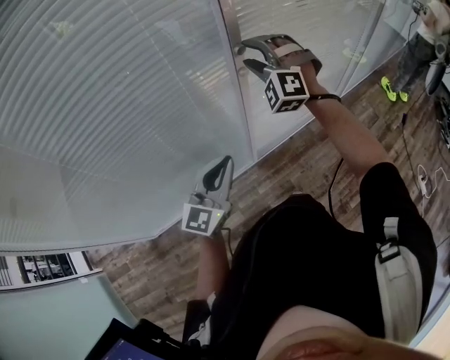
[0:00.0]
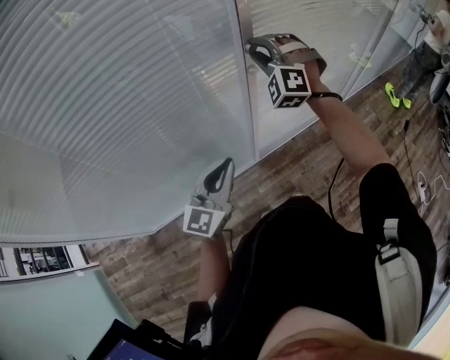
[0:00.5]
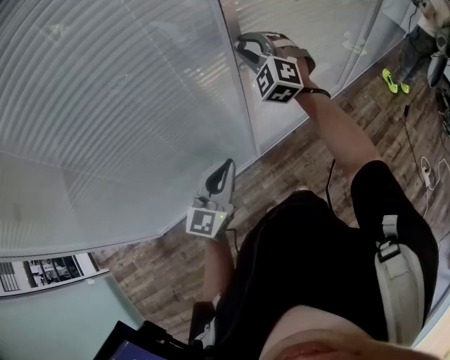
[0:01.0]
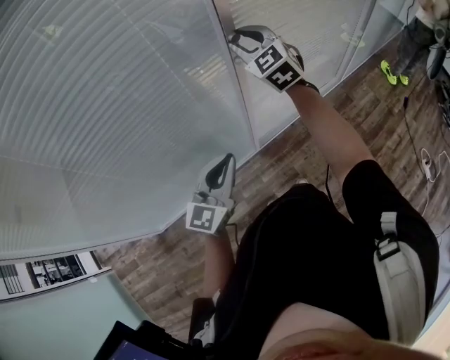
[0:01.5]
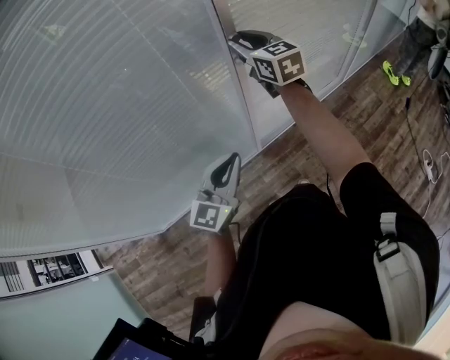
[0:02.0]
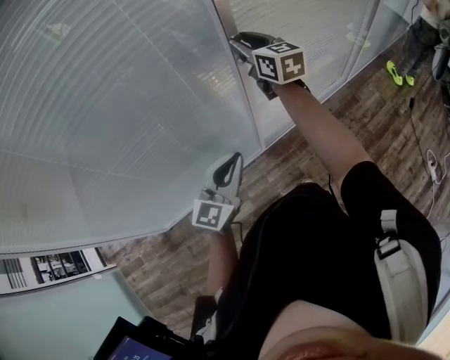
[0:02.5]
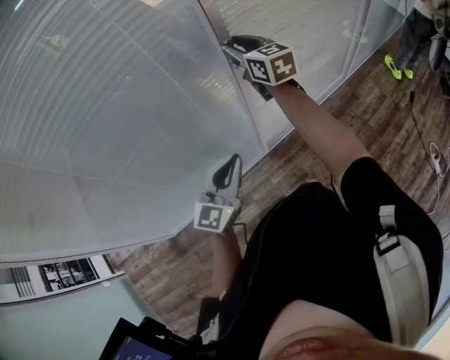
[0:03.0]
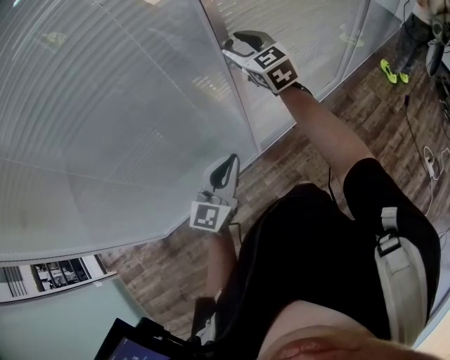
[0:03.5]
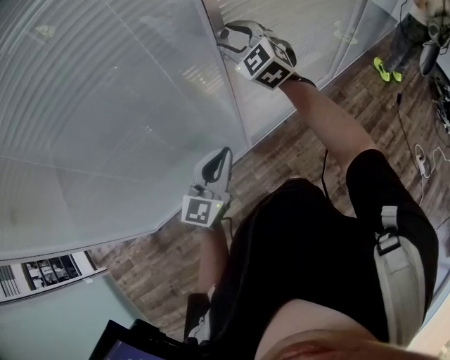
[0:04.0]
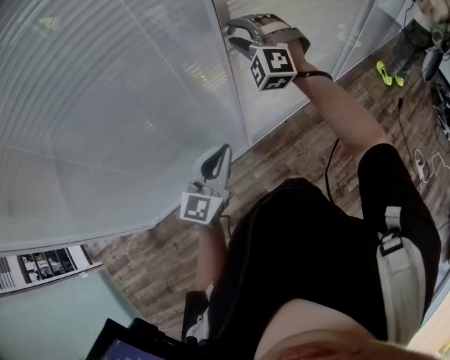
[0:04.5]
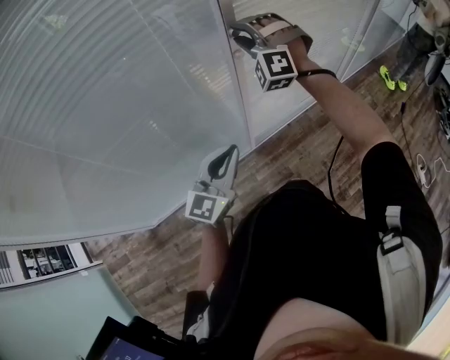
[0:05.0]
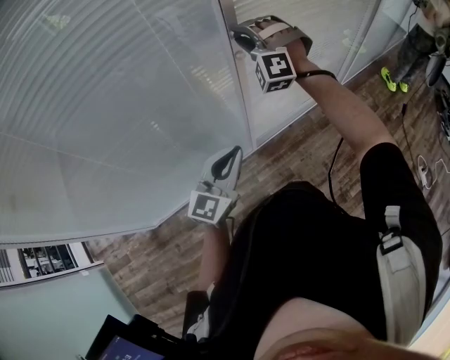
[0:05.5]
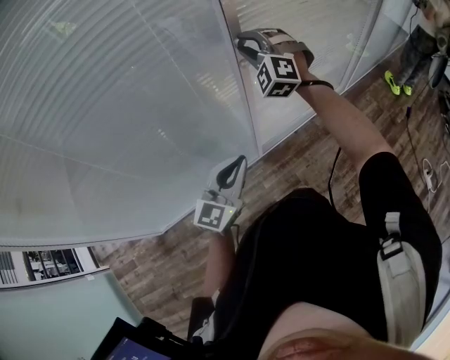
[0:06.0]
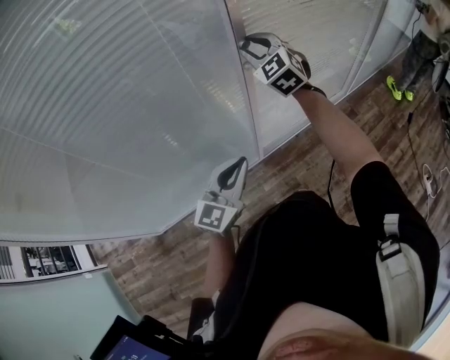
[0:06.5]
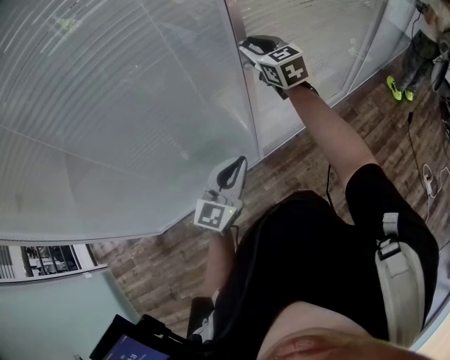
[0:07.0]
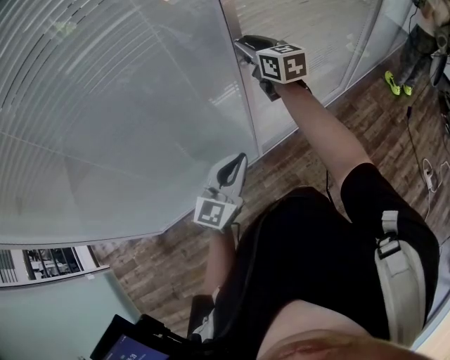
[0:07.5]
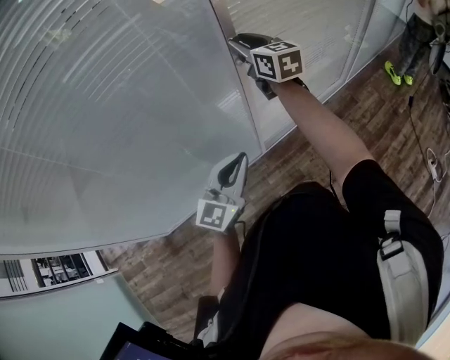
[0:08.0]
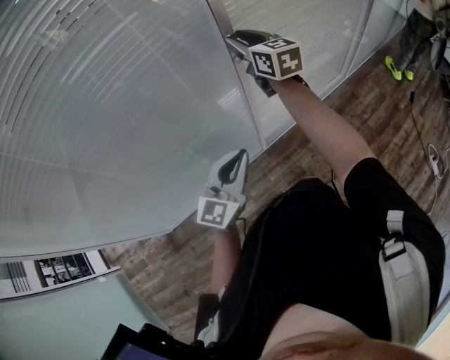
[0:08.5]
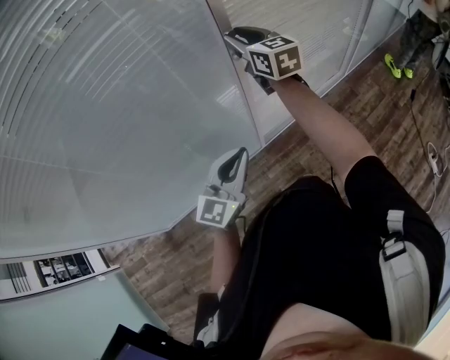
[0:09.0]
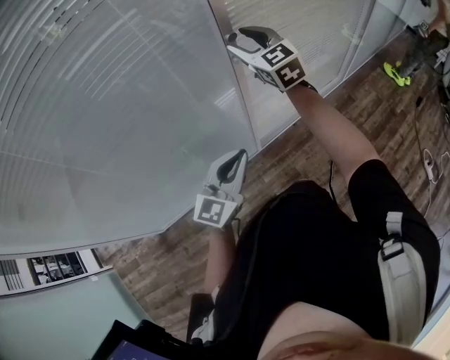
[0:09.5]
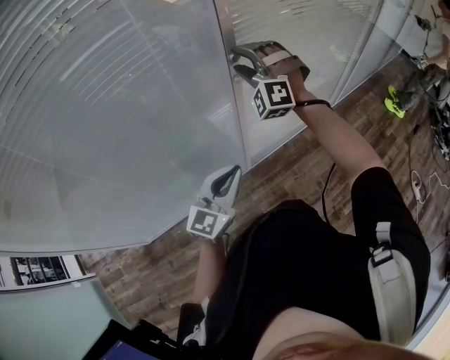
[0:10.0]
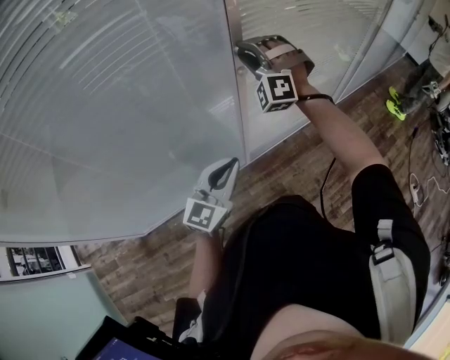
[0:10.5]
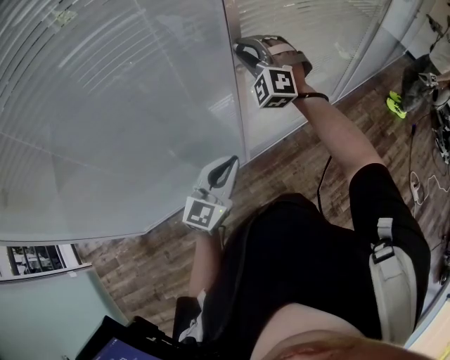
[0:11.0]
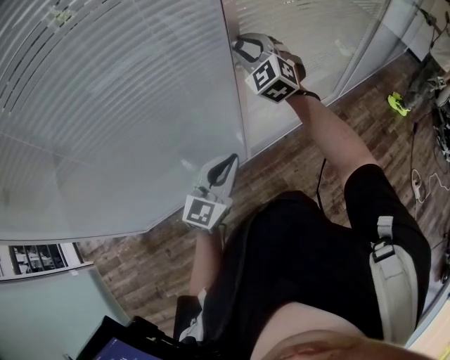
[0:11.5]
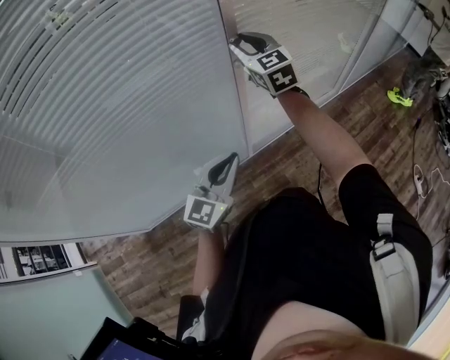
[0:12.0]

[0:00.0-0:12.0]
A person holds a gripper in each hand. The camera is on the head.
0:00.0 to 0:02.0: The right gripper rolls clockwise, seen from behind, by roughly 80 degrees, and closes up.
0:02.0 to 0:04.0: The right gripper rotates around the line of its fingers by about 40 degrees, counterclockwise from behind.
0:04.0 to 0:06.0: The right gripper turns by about 30 degrees.
0:06.0 to 0:08.0: The right gripper rolls clockwise, seen from behind, by approximately 80 degrees.
0:08.0 to 0:10.0: The right gripper twists roughly 90 degrees counterclockwise, seen from behind, and opens.
0:10.0 to 0:12.0: The right gripper rolls clockwise, seen from behind, by approximately 70 degrees, and closes its fingers.

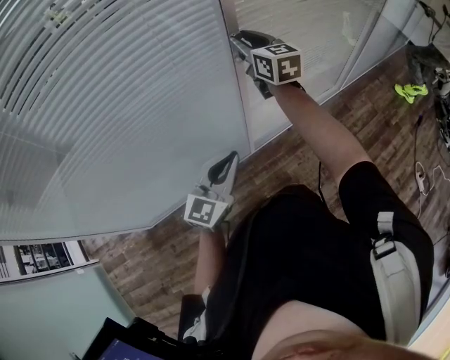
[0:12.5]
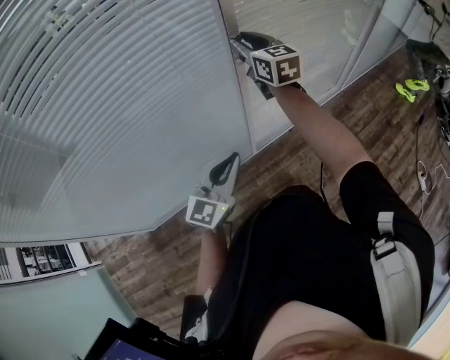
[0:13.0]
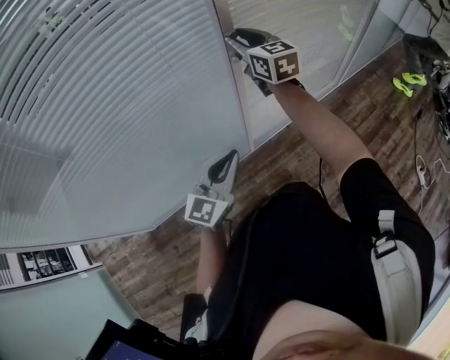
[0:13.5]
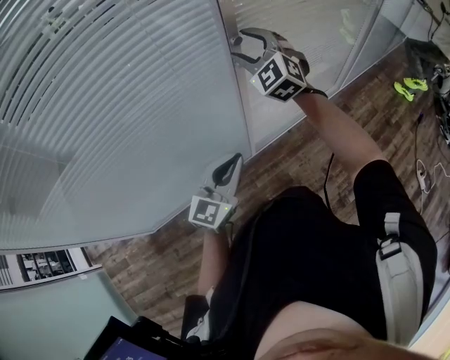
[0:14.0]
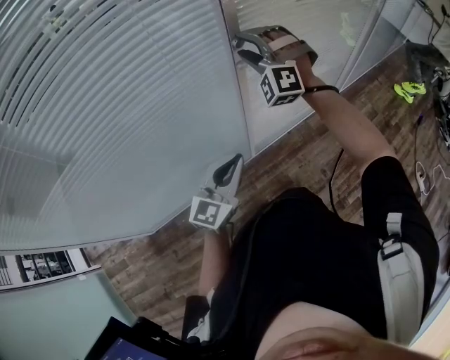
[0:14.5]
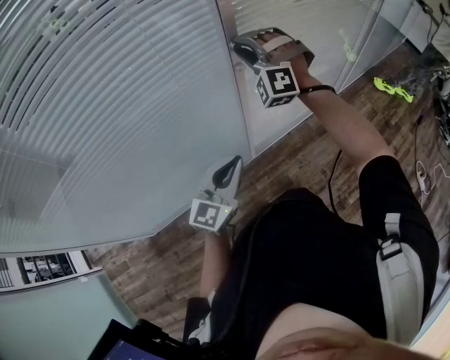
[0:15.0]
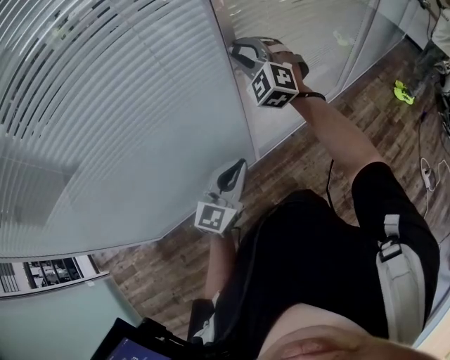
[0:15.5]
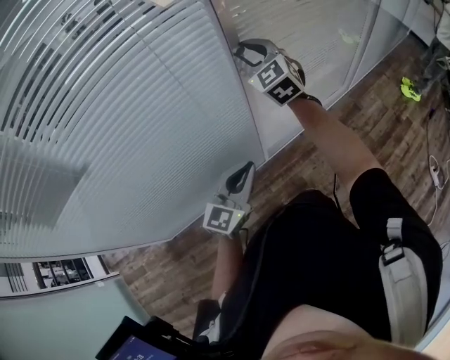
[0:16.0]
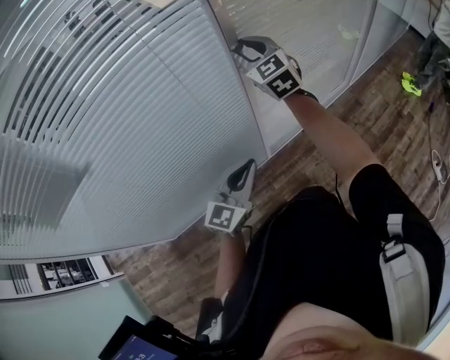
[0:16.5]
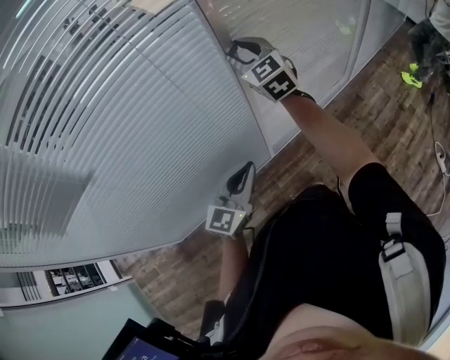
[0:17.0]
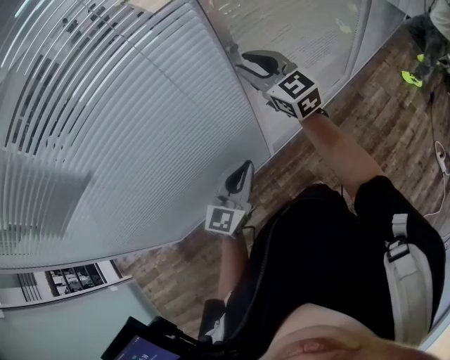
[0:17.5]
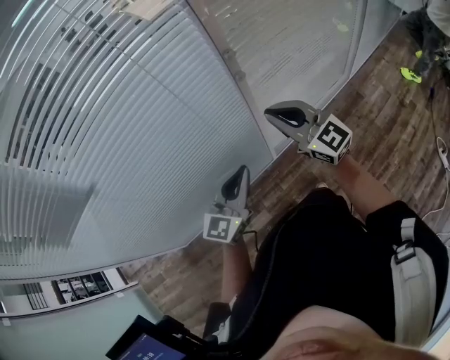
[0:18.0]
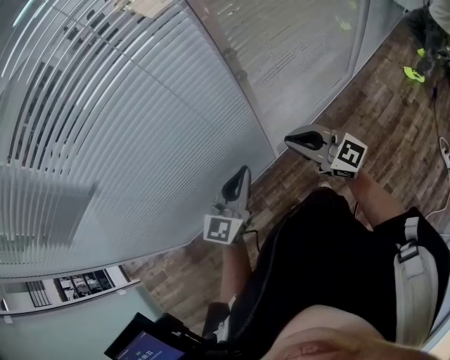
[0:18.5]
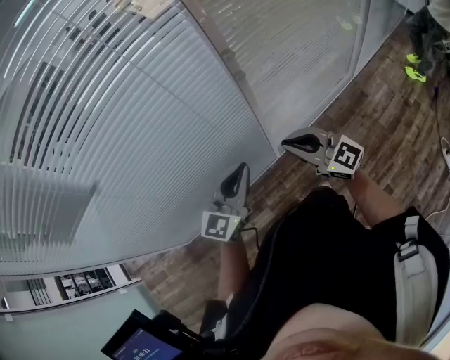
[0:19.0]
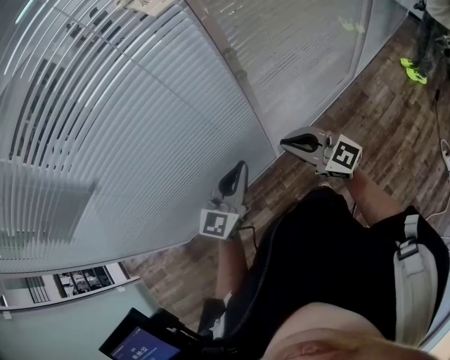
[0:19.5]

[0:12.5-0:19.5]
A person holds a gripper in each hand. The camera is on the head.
0:12.5 to 0:14.5: The right gripper rolls counterclockwise, seen from behind, by about 90 degrees, and opens up.
0:14.5 to 0:16.0: The right gripper rolls clockwise, seen from behind, by some 50 degrees, and closes its fingers.
0:16.0 to 0:17.5: The right gripper shifts roughly 5 cm backward, and changes its angle by about 20 degrees.
0:17.5 to 0:19.5: The right gripper travels backward and downward by roughly 20 cm, turns by approximately 30 degrees, and closes up.

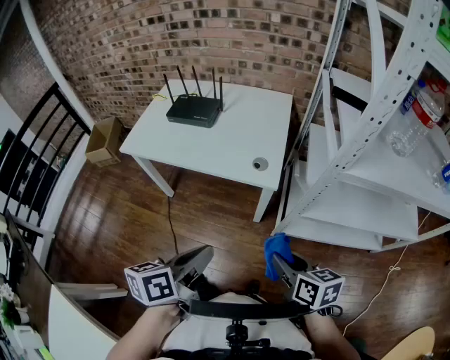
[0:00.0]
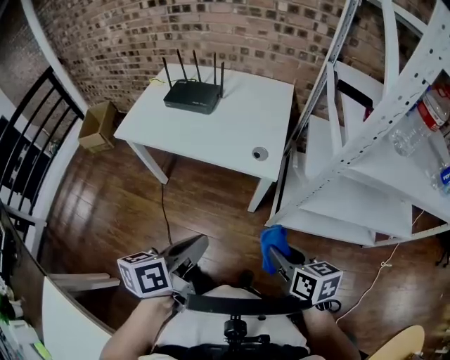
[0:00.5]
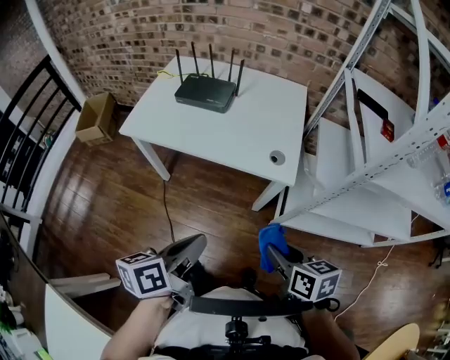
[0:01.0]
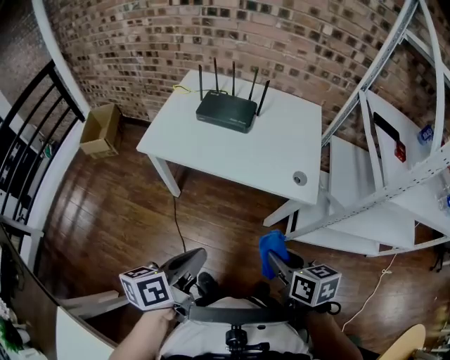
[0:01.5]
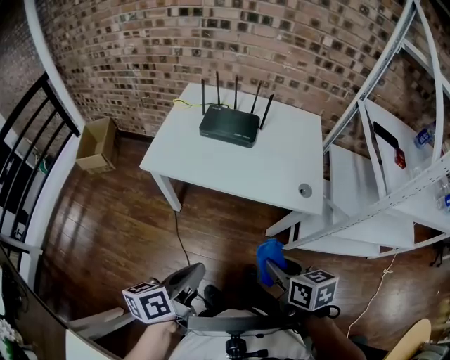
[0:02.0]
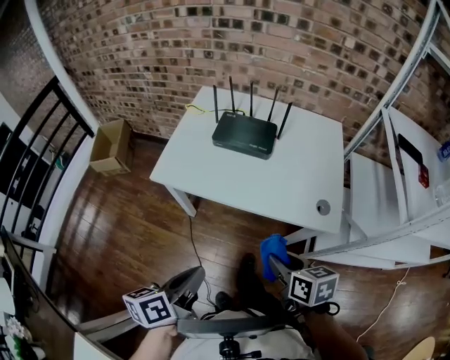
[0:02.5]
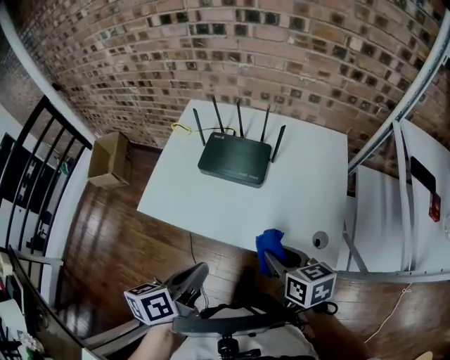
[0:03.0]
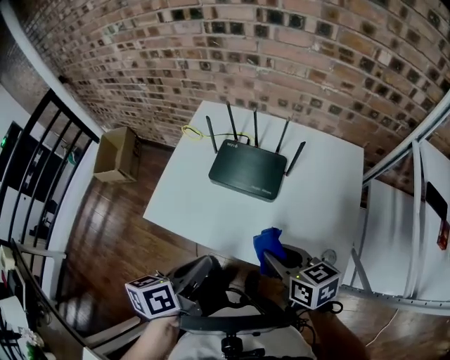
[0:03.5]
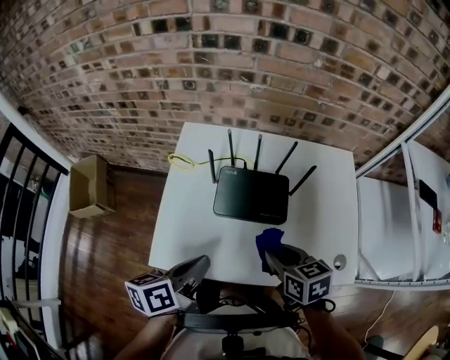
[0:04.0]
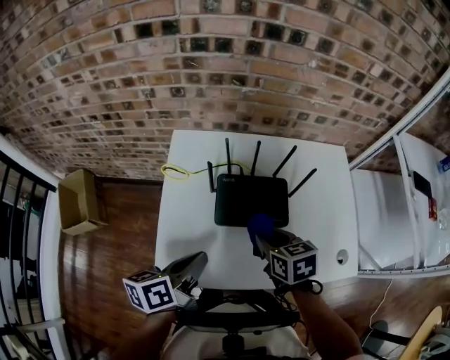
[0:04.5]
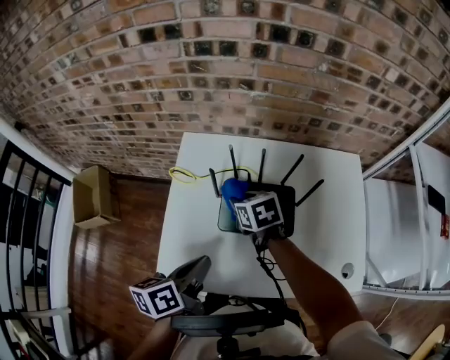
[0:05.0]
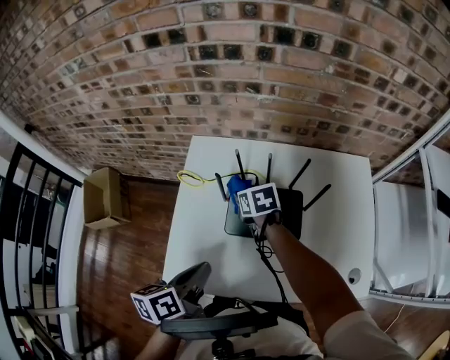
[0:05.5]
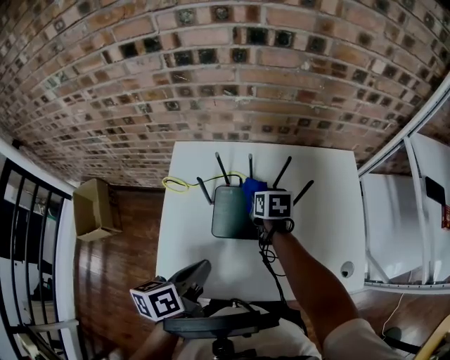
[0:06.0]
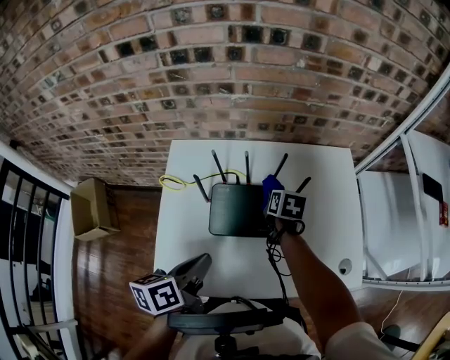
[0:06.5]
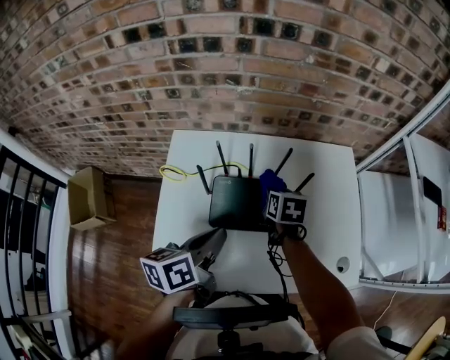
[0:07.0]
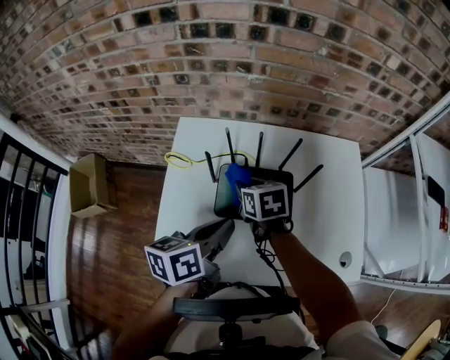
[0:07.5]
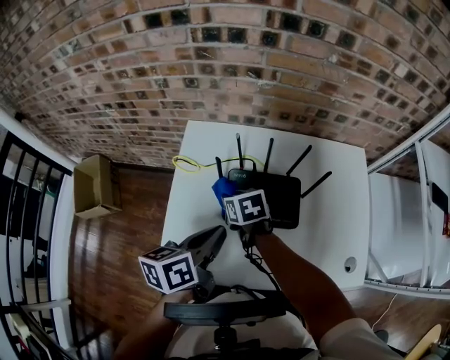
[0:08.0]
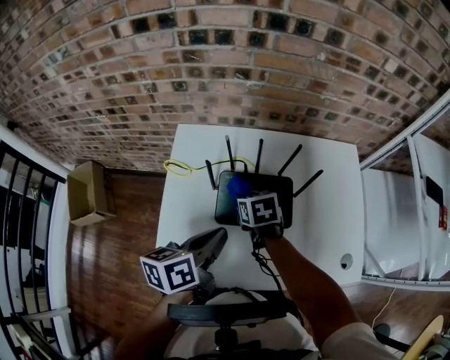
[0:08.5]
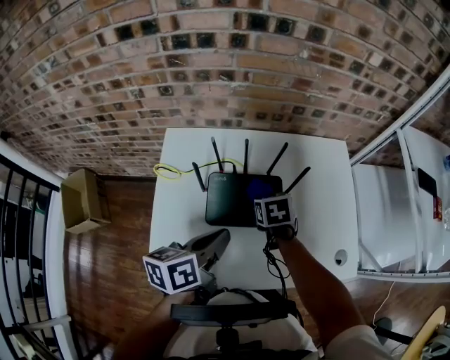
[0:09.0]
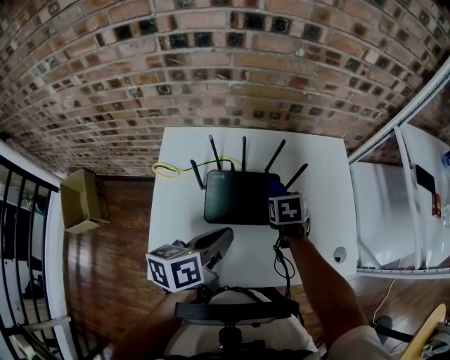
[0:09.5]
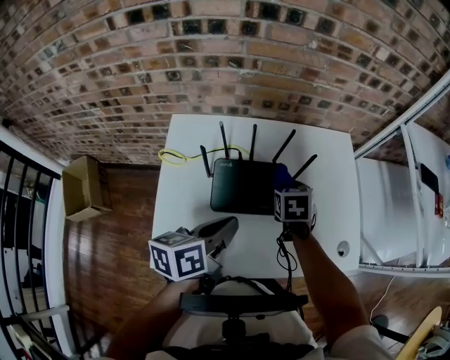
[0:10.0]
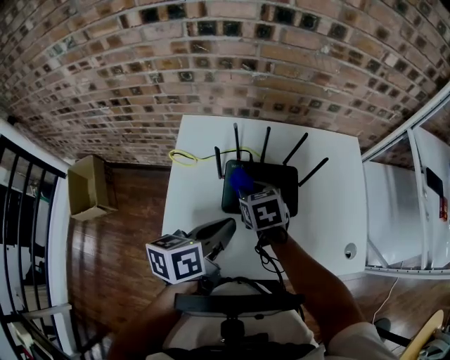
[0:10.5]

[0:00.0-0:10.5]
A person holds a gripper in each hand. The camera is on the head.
0:00.0 to 0:02.0: Both grippers travel together to the left, about 35 cm.
0:02.0 to 0:04.0: The pair of grippers is taken forward, some 50 cm.
0:04.0 to 0:06.5: The right gripper heads forward, covering about 25 cm, and swivels approximately 30 degrees. Meanwhile the left gripper heads forward, covering approximately 10 cm.
0:06.5 to 0:08.5: The right gripper is displaced to the left and backward by about 15 cm, and changes its angle by about 30 degrees.
0:08.5 to 0:10.5: The right gripper moves approximately 15 cm to the right and comes back.
